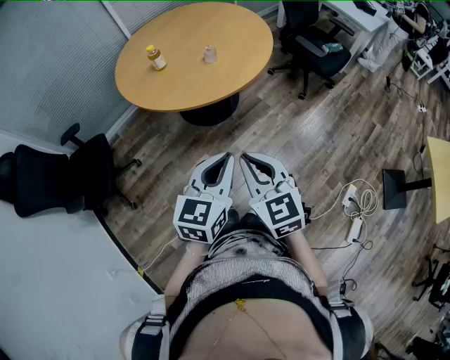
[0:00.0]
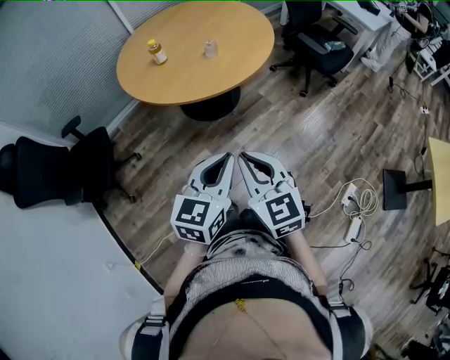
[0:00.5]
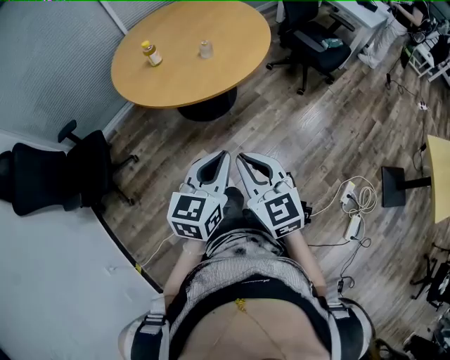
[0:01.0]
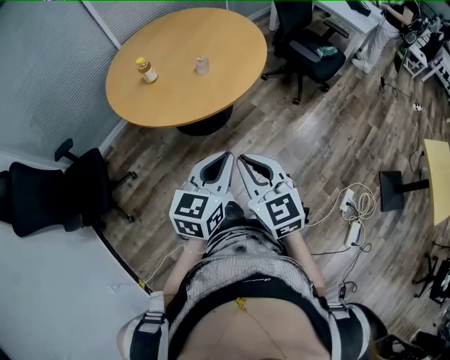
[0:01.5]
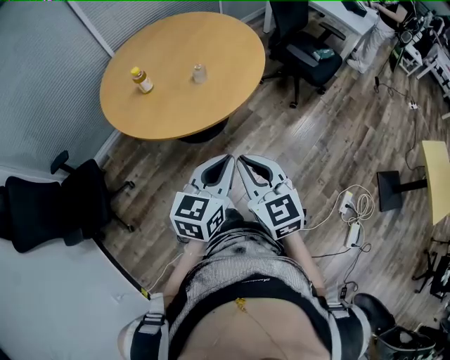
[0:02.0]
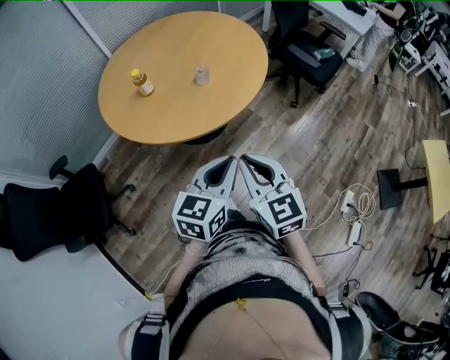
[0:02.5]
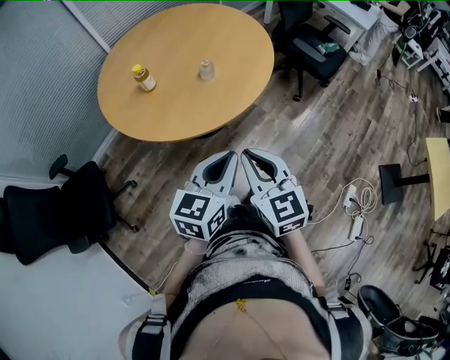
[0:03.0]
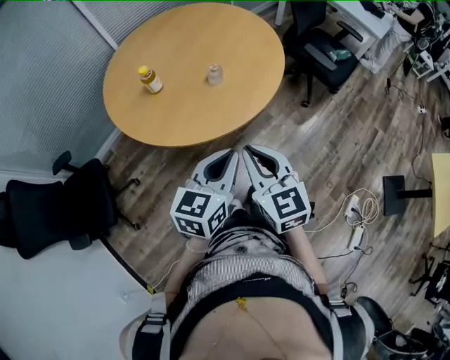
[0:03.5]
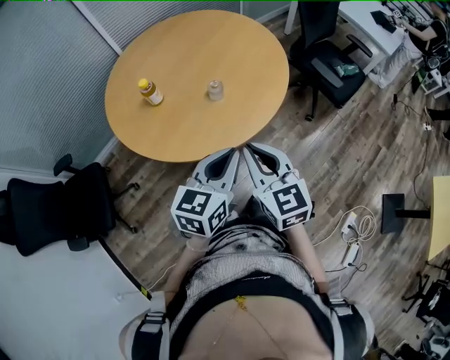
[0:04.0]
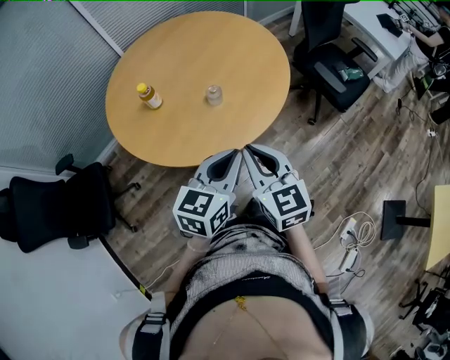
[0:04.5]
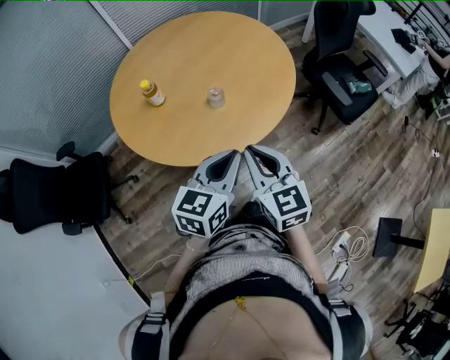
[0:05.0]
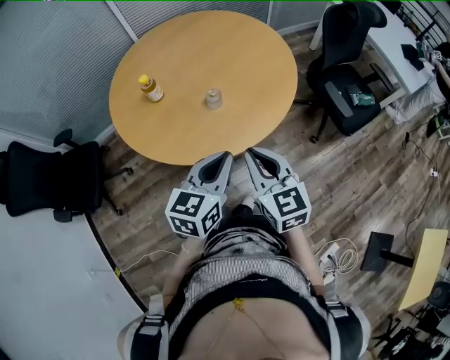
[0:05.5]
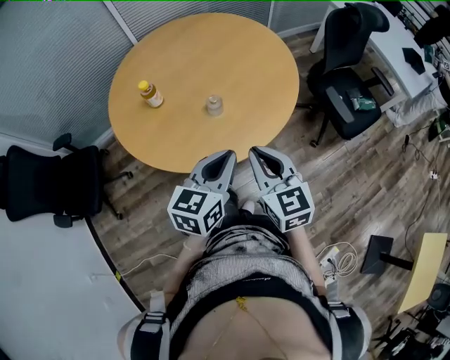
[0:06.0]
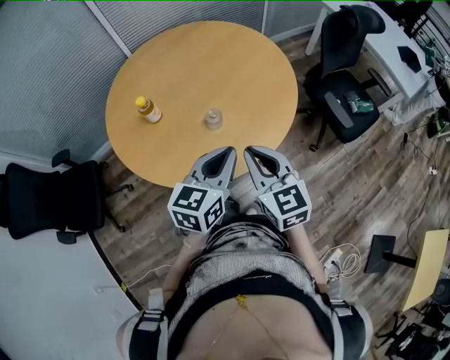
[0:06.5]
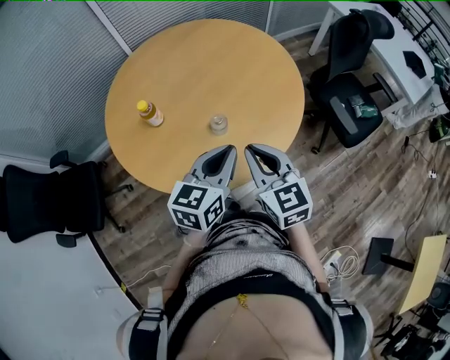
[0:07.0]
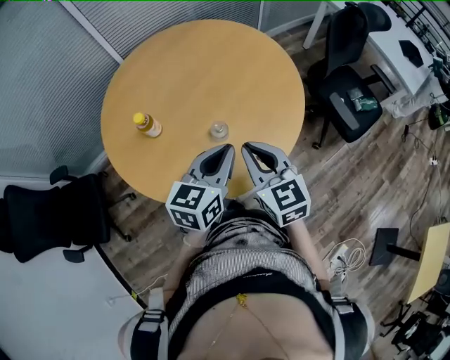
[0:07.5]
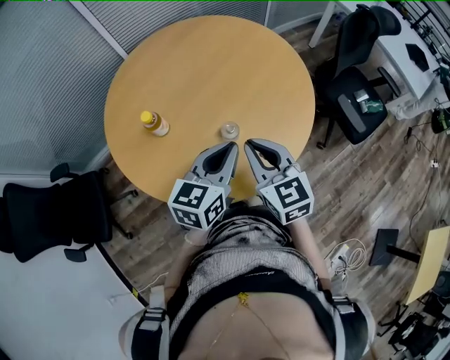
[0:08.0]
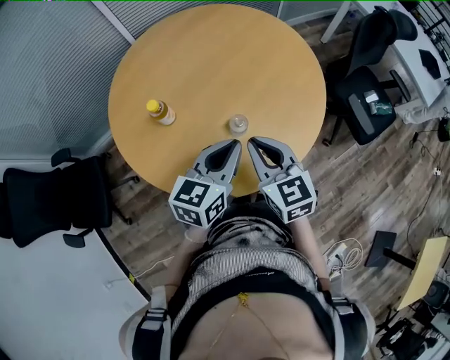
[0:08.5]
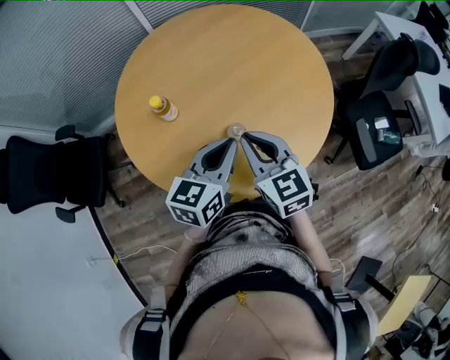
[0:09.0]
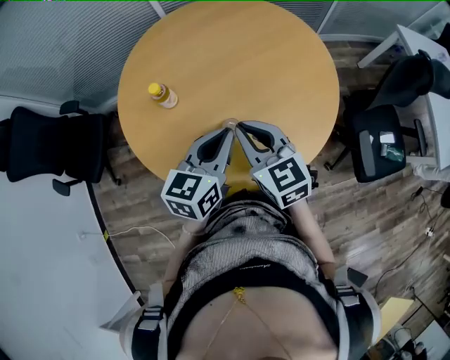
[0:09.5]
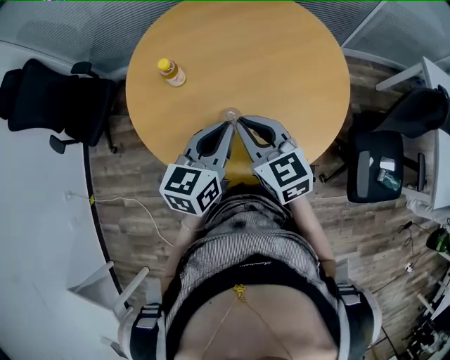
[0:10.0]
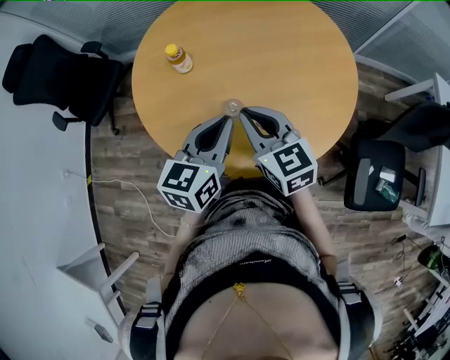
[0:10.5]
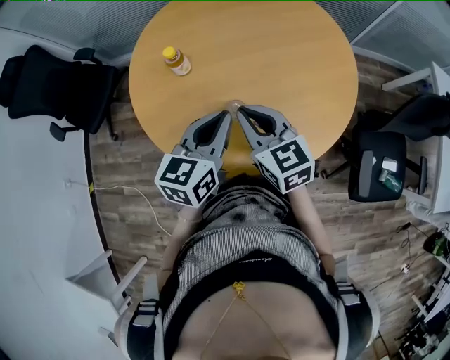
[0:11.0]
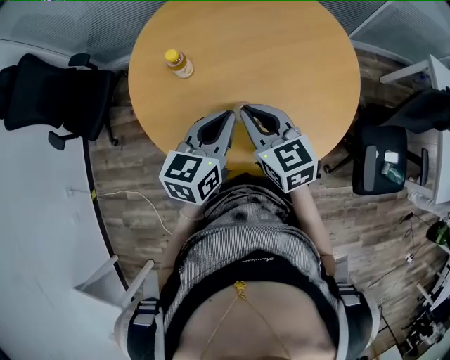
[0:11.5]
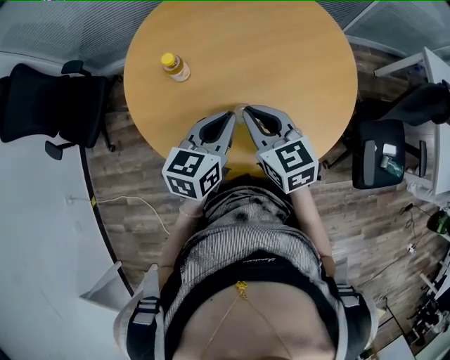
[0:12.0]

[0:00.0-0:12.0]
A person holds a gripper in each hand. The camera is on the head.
0:00.0 to 0:02.0: The grippers both shift forward by about 10 cm.
0:02.0 to 0:04.0: Both grippers travel together forward, about 15 cm.
0:04.0 to 0:06.0: Both grippers move forward and to the right, approximately 10 cm.
0:06.0 to 0:08.0: The grippers both shift forward and to the left by some 20 cm.
0:08.0 to 0:10.0: The left gripper moves roughly 5 cm, and swivels approximately 40 degrees, while the right gripper changes place by about 5 cm, and swivels about 40 degrees.
0:10.0 to 0:12.0: The left gripper shifts by roughly 5 cm. The right gripper changes place by approximately 5 cm.

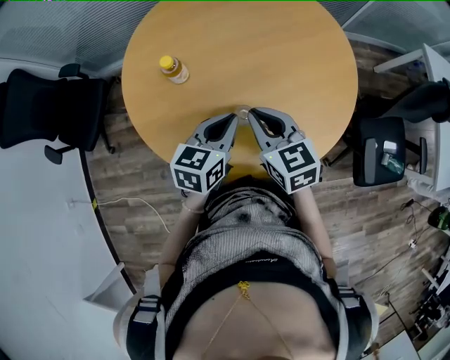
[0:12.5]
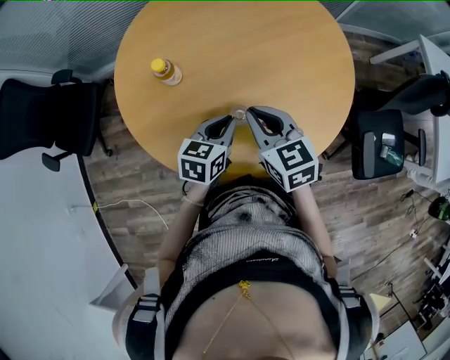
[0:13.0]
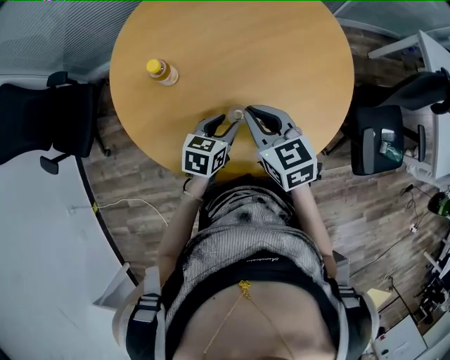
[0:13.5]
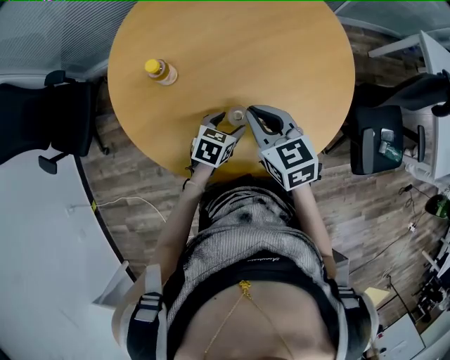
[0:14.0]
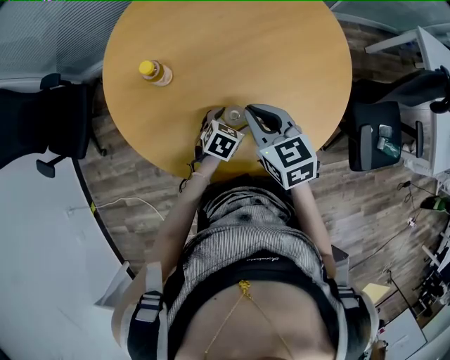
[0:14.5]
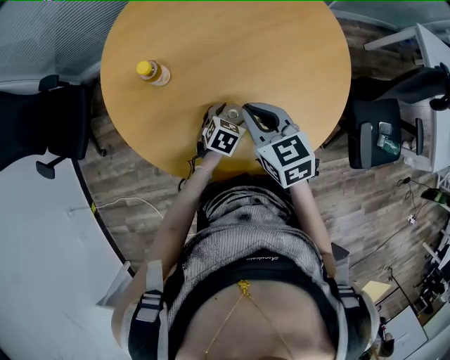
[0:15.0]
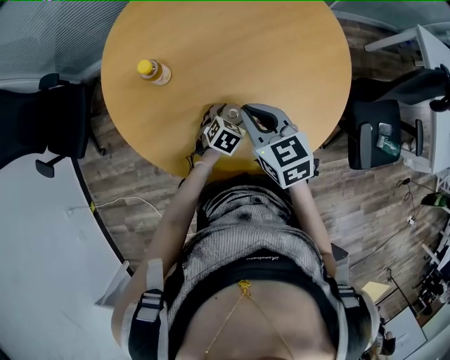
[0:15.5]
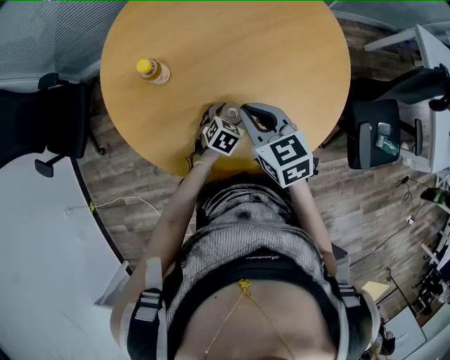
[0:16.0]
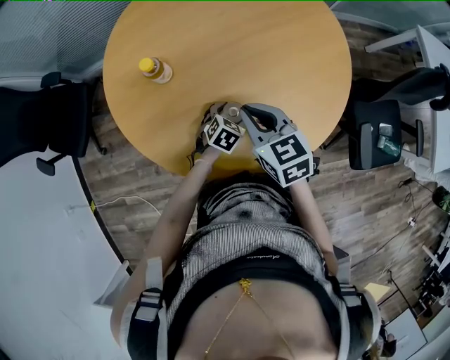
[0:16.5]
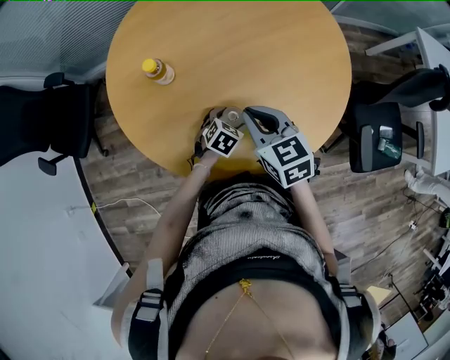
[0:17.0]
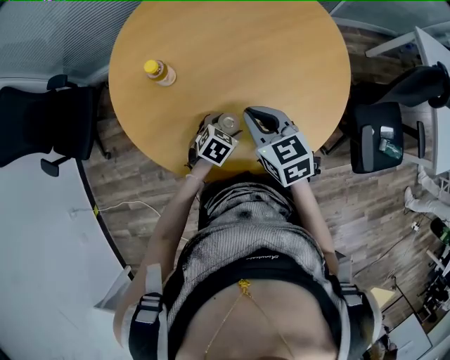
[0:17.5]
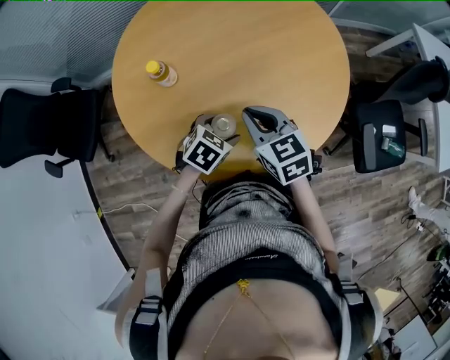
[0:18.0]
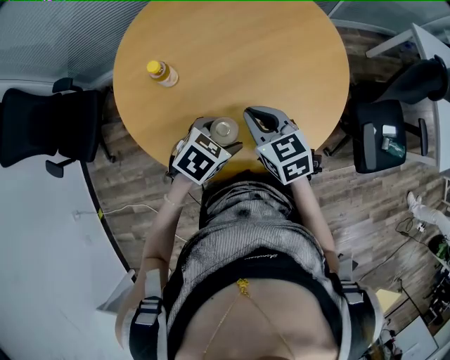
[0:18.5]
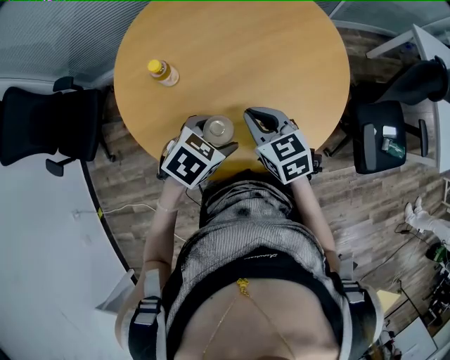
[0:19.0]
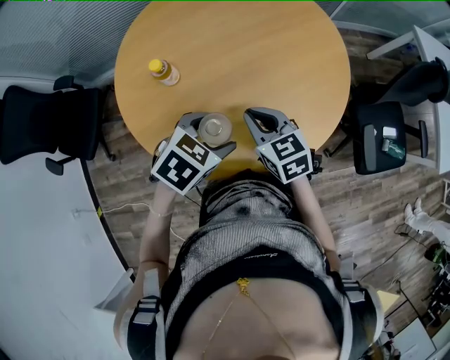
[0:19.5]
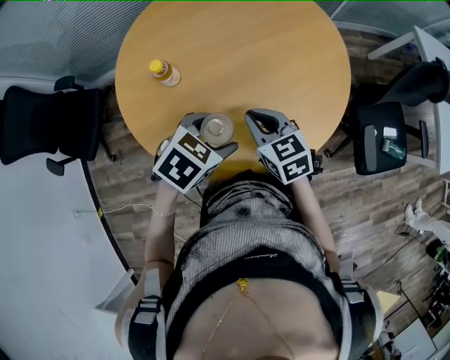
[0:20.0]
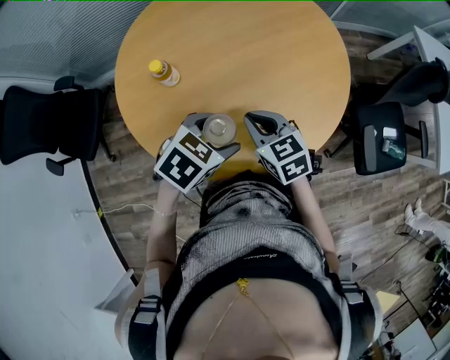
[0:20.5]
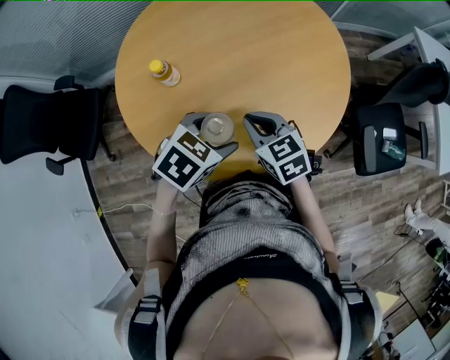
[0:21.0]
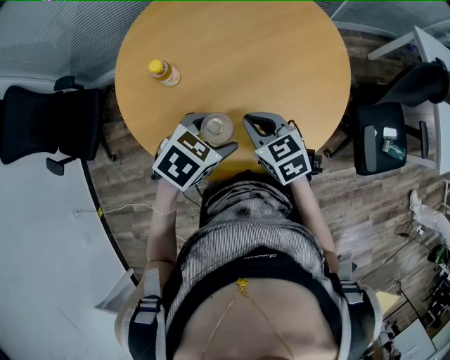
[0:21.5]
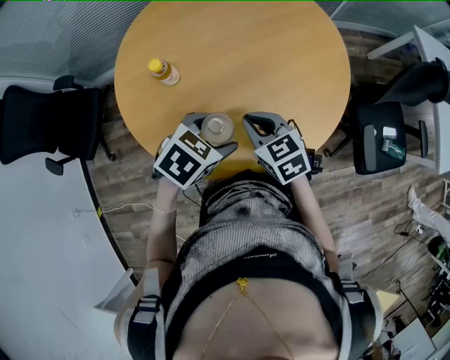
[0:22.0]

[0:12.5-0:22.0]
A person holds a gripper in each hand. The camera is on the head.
0:12.5 to 0:14.5: The left gripper heads downward, covering approximately 20 cm, swivels roughly 30 degrees, and opens its fingers.
0:14.5 to 0:16.5: The grippers stay close to where they were, moving slightly.
0:16.5 to 0:18.0: The left gripper heads upward and backward, covering some 15 cm.
0:18.0 to 0:20.0: The left gripper heads upward, covering approximately 10 cm.
0:20.0 to 0:22.0: The grippers stay close to where they were, moving slightly.

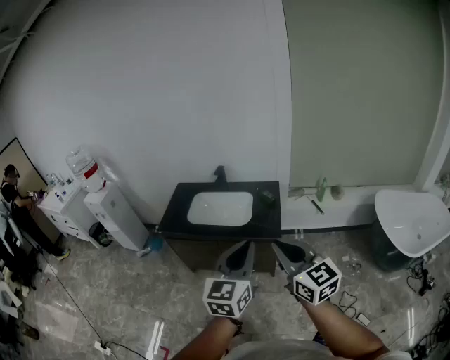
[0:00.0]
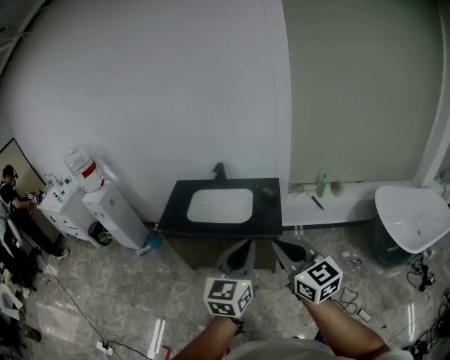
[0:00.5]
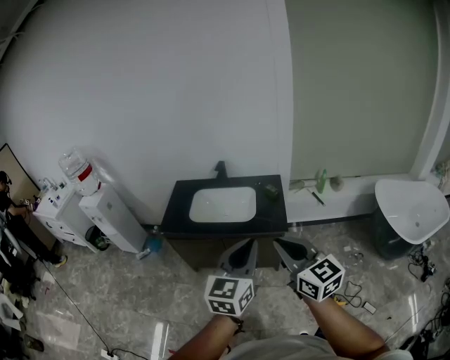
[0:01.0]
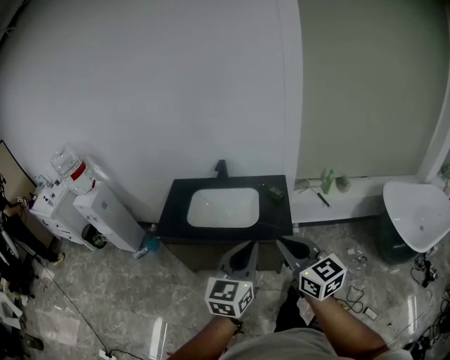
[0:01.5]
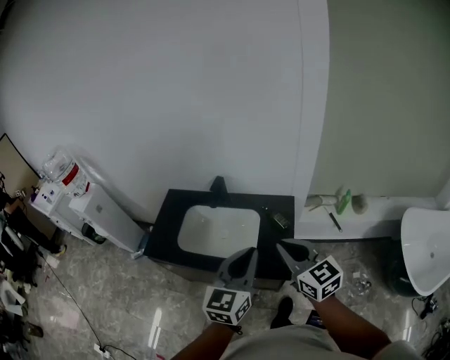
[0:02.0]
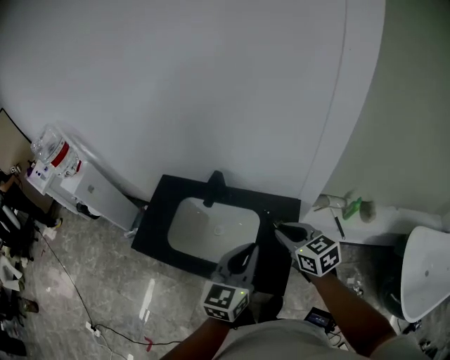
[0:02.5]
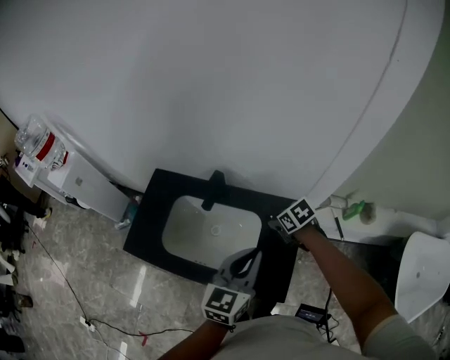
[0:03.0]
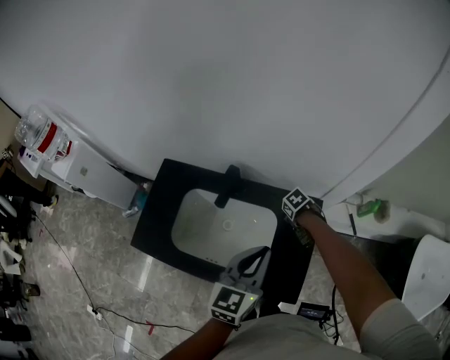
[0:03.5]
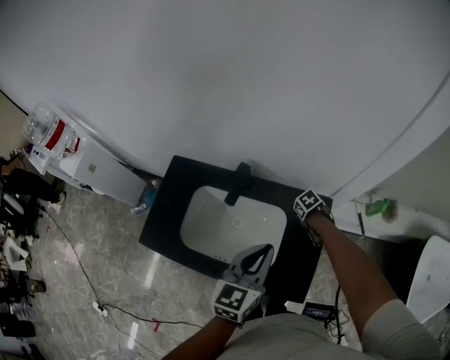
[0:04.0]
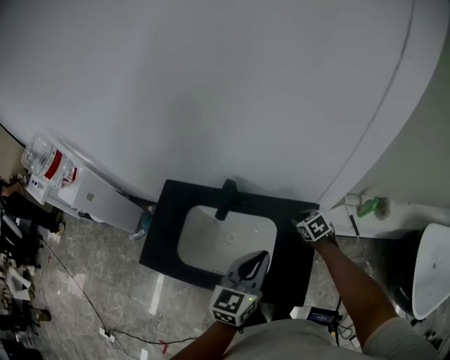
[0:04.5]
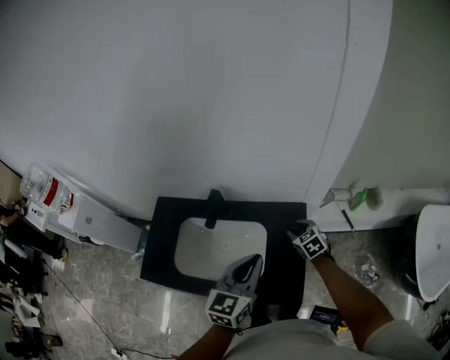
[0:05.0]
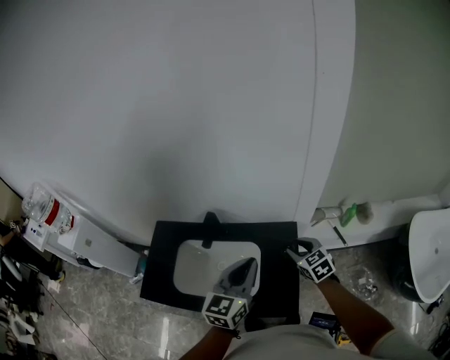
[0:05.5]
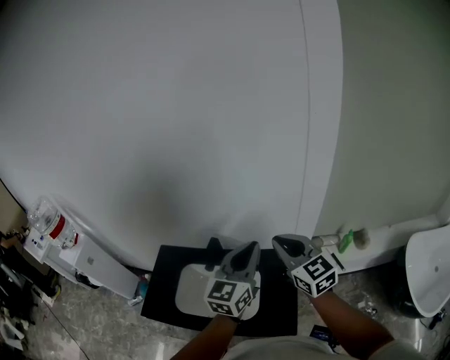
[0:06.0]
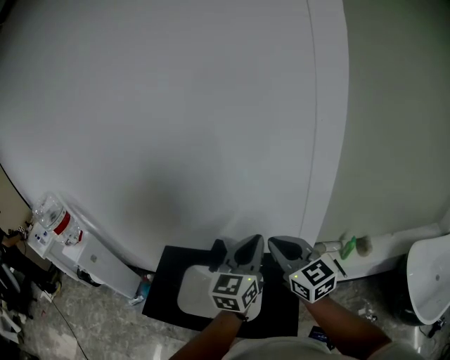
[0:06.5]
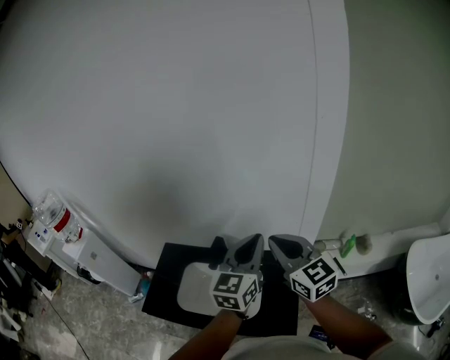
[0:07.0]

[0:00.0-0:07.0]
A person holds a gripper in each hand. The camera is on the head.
0:00.0 to 0:02.0: Both grippers travel together forward, about 35 cm.
0:02.0 to 0:03.5: The left gripper ends up approximately 25 cm from where it was; the right gripper shifts about 40 cm downward, tilts its fingers about 70 degrees downward, and opens up.
0:03.5 to 0:05.0: The left gripper changes place by some 5 cm. The right gripper is displaced upward by some 10 cm, and tips its fingers upward by roughly 30 degrees.
0:05.0 to 0:07.0: The left gripper moves upward, approximately 20 cm, while the right gripper goes some 40 cm upward, points its fingers some 50 degrees further upward, and closes.
